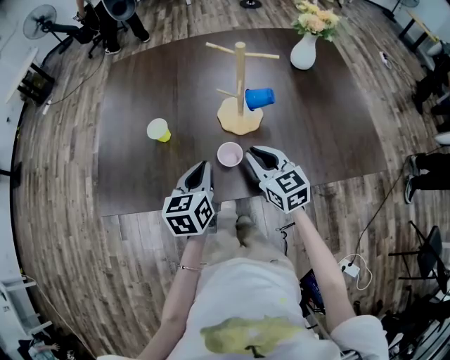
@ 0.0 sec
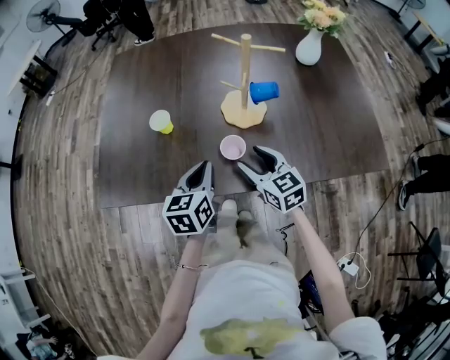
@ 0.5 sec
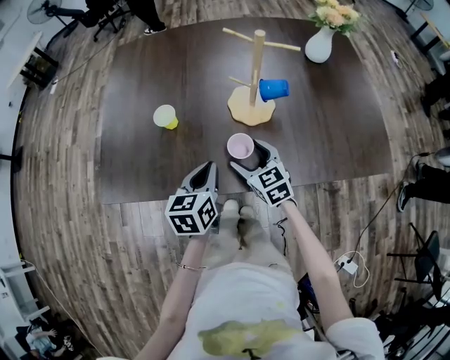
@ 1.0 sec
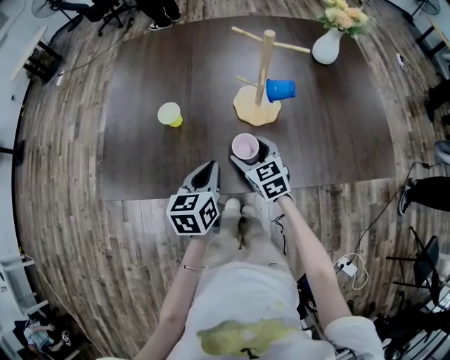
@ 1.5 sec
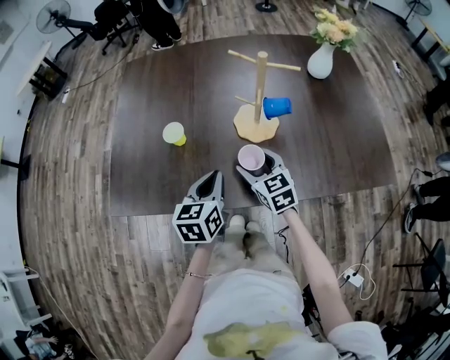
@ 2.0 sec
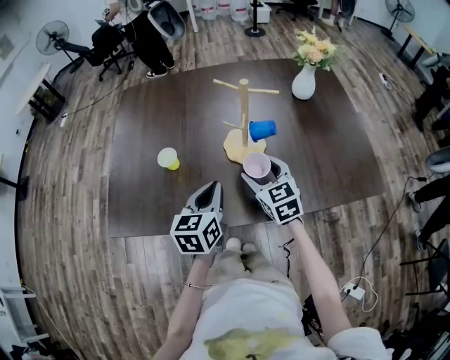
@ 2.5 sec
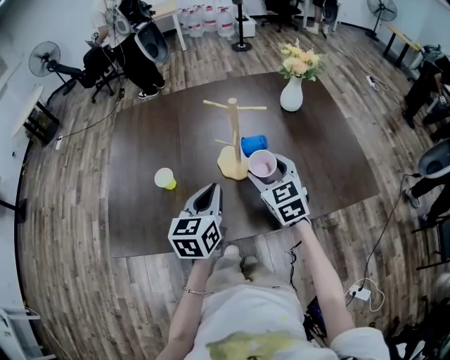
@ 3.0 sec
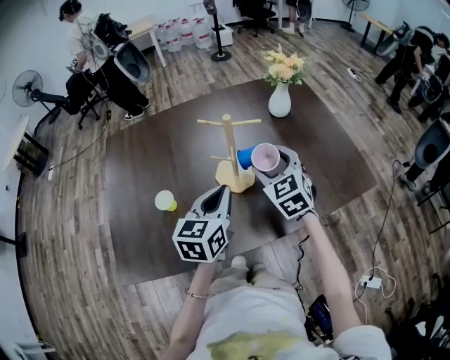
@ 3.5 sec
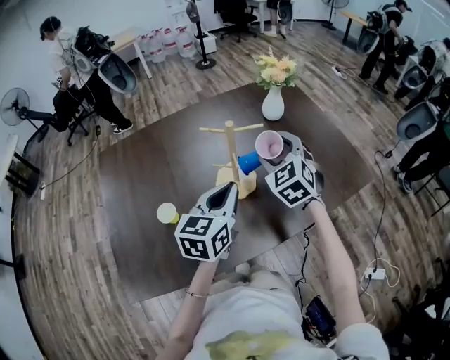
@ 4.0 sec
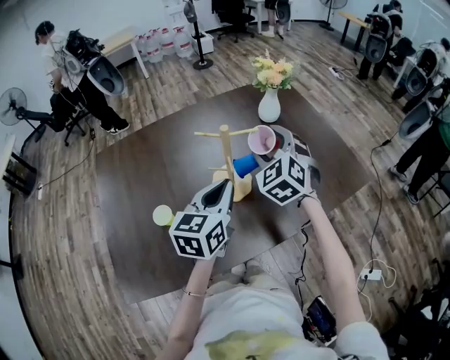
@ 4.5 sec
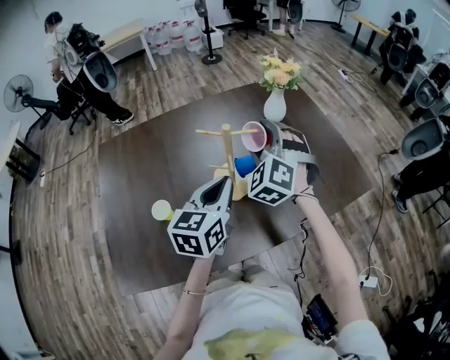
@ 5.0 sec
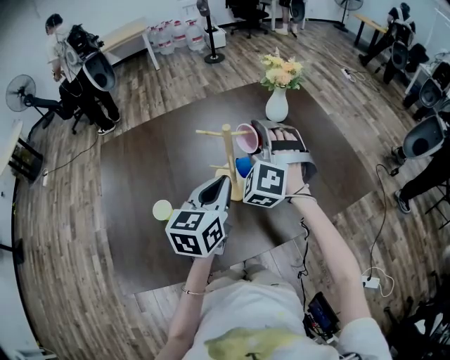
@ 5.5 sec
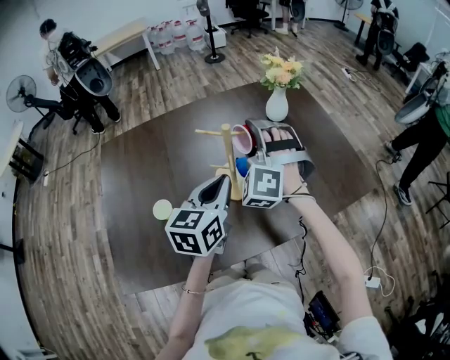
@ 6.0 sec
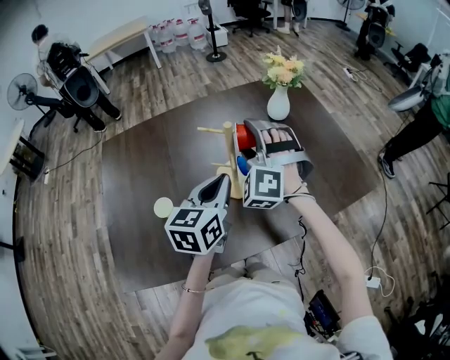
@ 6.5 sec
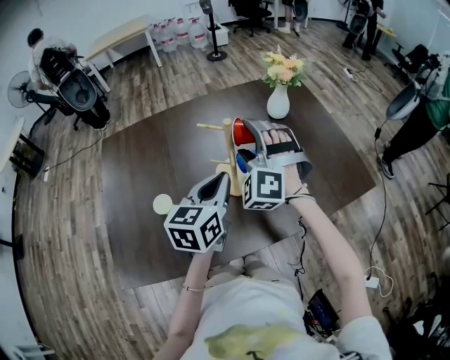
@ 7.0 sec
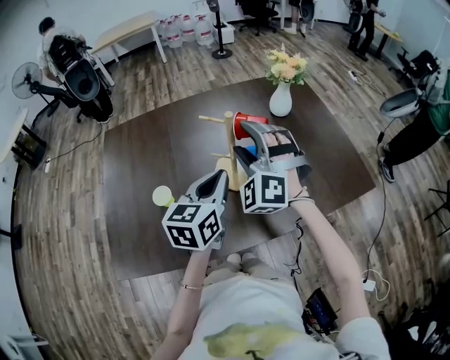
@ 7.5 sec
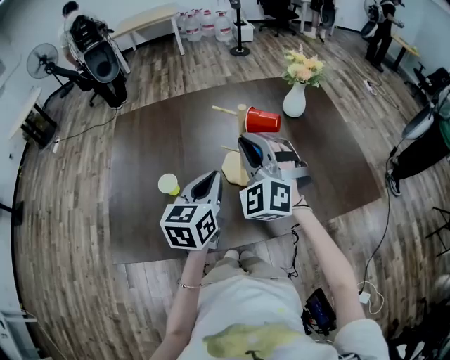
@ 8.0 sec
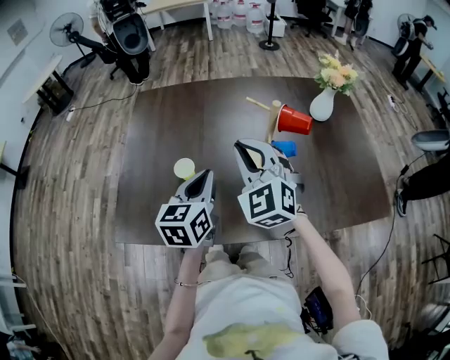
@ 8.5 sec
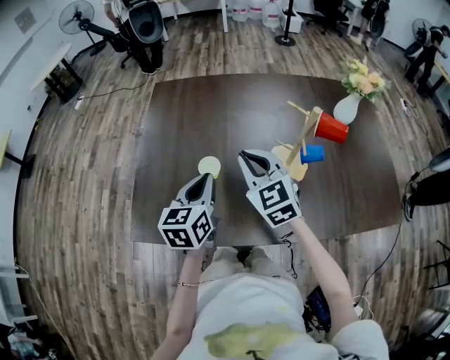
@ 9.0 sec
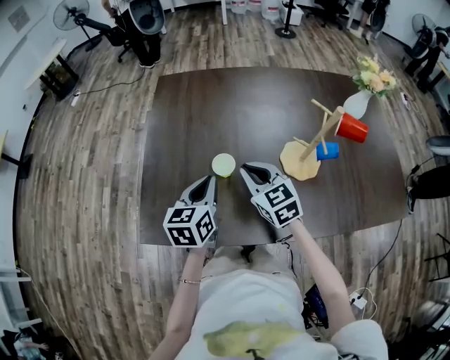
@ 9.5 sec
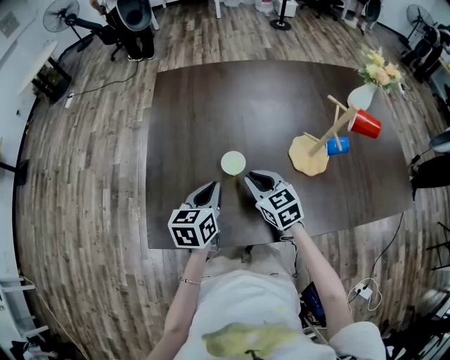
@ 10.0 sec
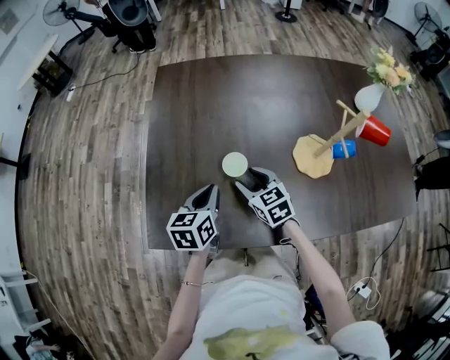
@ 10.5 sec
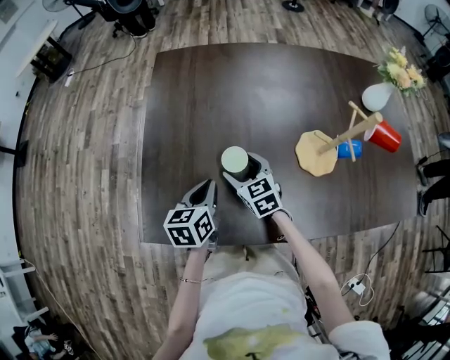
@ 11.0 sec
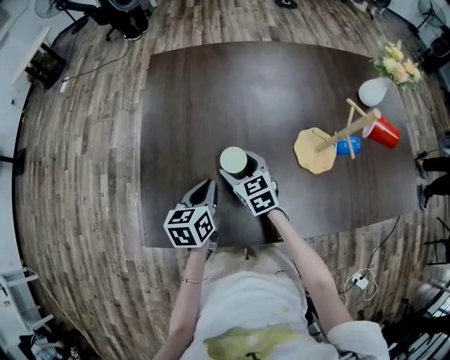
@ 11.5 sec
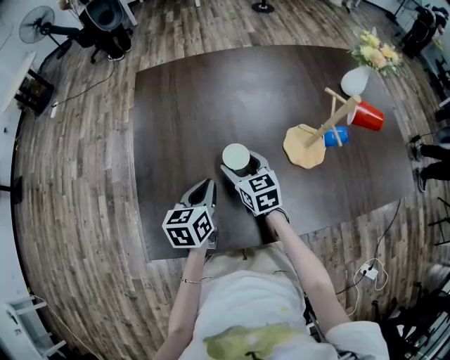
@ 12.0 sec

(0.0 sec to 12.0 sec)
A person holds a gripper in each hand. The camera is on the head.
0.0 sec - 2.0 sec: The right gripper changes place by some 5 cm, and opens up.
2.0 sec - 4.0 sec: Both grippers travel together upward, approximately 15 cm. The left gripper changes its angle by about 30 degrees. Meanwhile the right gripper rotates approximately 40 degrees.
4.0 sec - 6.0 sec: The right gripper heads to the left, covering approximately 5 cm, and rolls counterclockwise, seen from behind, by about 40 degrees.
6.0 sec - 8.0 sec: The right gripper is displaced backward by some 10 cm, turns by roughly 30 degrees, and closes. Meanwhile the left gripper moves some 5 cm.
8.0 sec - 10.0 sec: The left gripper heads to the left and downward, covering some 25 cm, while the right gripper travels downward and to the left by roughly 30 cm, and rotates around the line of its fingers by some 50 degrees, clockwise from behind.
10.0 sec - 12.0 sec: The right gripper heads forward, covering about 5 cm, and opens up.

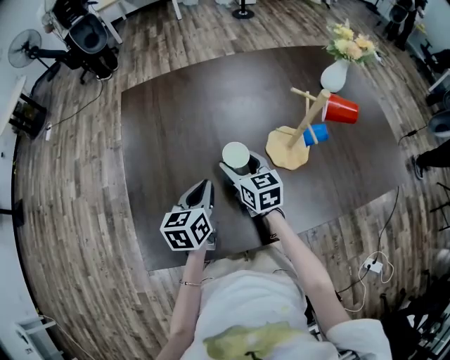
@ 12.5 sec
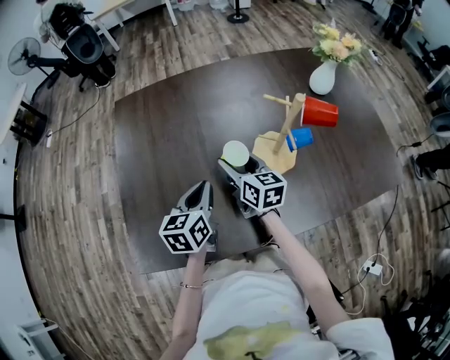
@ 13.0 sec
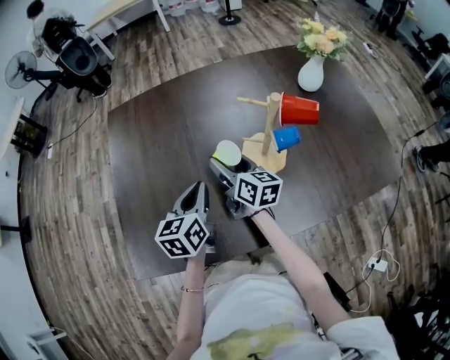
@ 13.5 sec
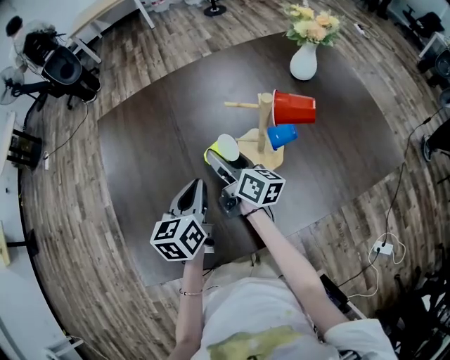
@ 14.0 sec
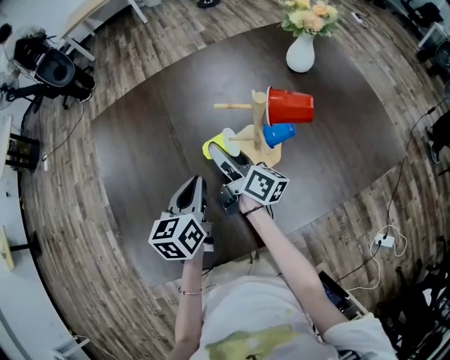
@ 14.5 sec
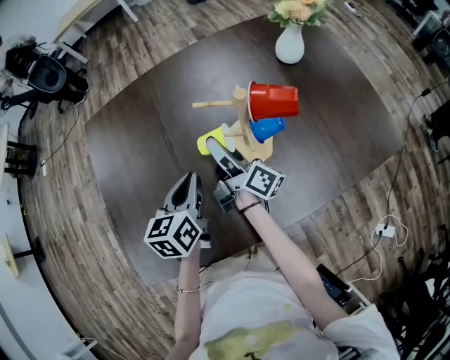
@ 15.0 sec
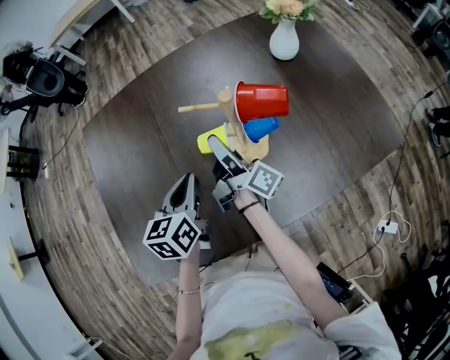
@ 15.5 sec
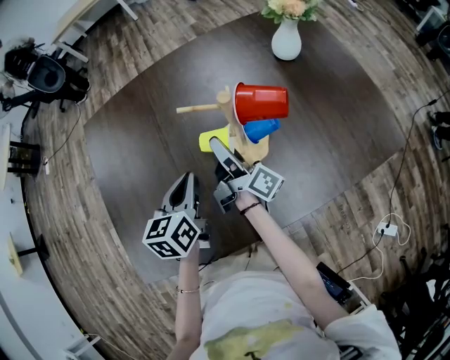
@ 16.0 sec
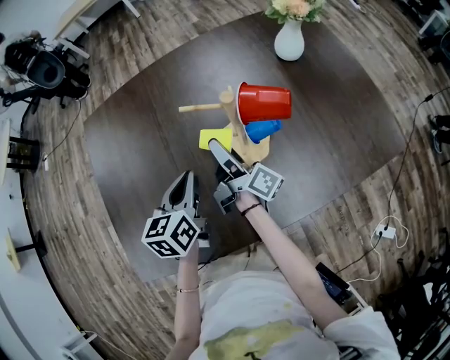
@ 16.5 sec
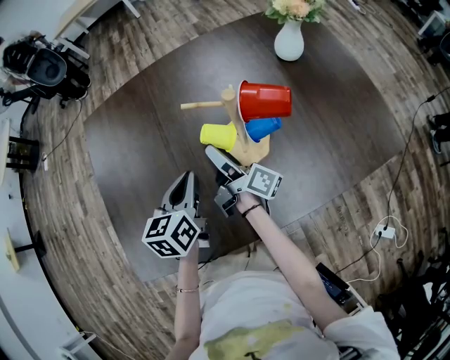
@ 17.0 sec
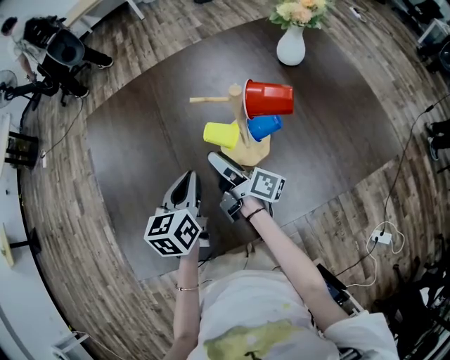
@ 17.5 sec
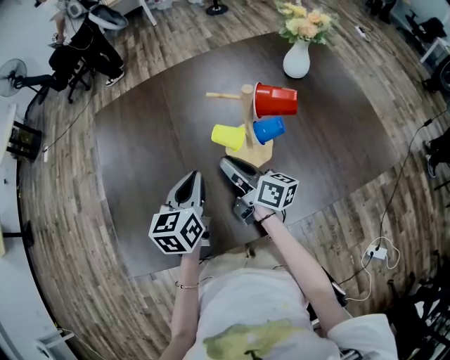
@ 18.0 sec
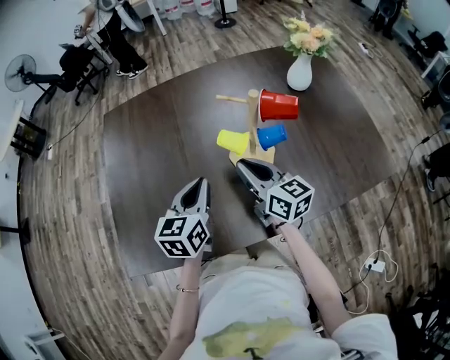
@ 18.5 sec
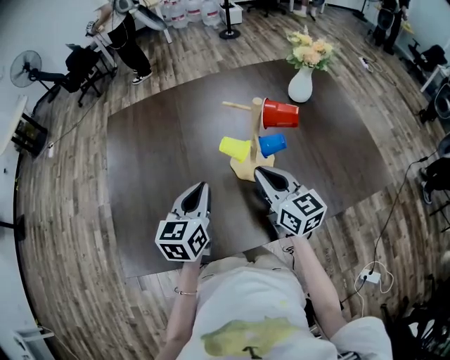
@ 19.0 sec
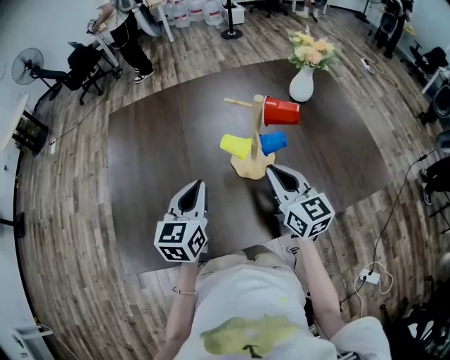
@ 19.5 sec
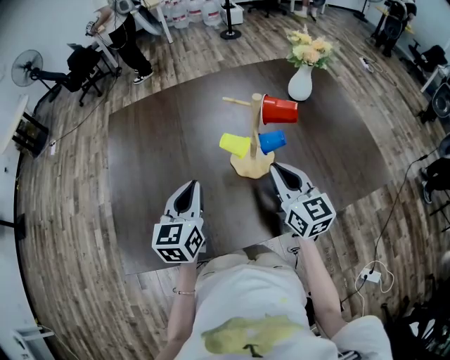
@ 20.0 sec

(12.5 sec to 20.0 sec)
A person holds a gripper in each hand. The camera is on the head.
12.5 sec - 14.5 sec: The two grippers go approximately 10 cm to the right. The right gripper rotates around the line of its fingers by about 50 degrees, clockwise from behind.
14.5 sec - 16.5 sec: The grippers stay close to where they were, moving slightly.
16.5 sec - 18.0 sec: The right gripper travels backward by some 5 cm, changes its angle by about 30 degrees, and closes its fingers.
18.0 sec - 20.0 sec: The right gripper heads to the right, upward and backward, covering roughly 15 cm, and rotates around the line of its fingers by some 50 degrees, counterclockwise from behind; the left gripper shifts by approximately 5 cm.

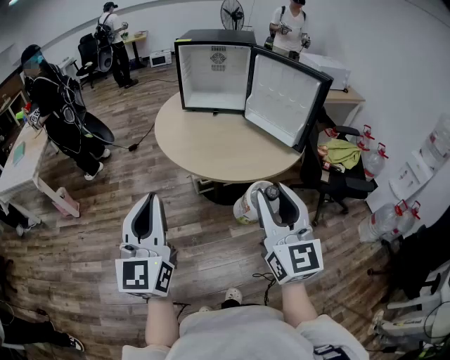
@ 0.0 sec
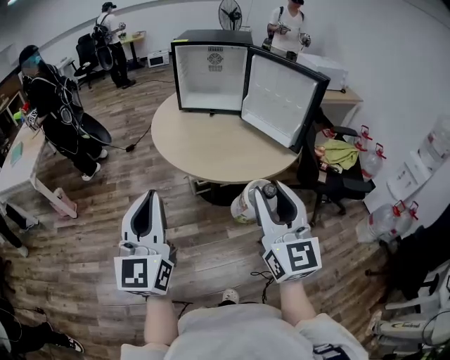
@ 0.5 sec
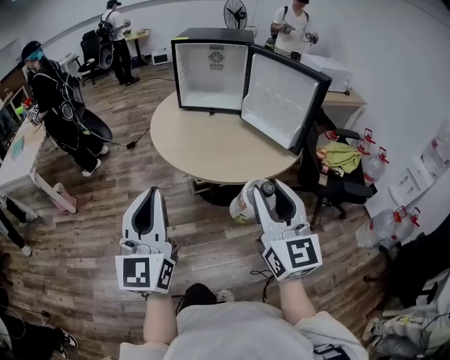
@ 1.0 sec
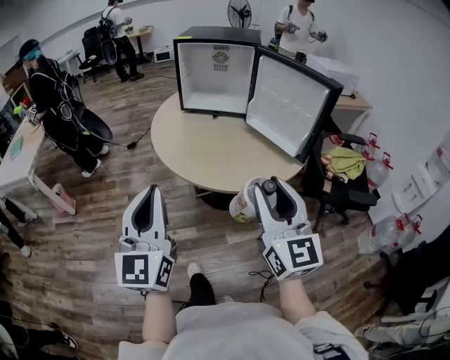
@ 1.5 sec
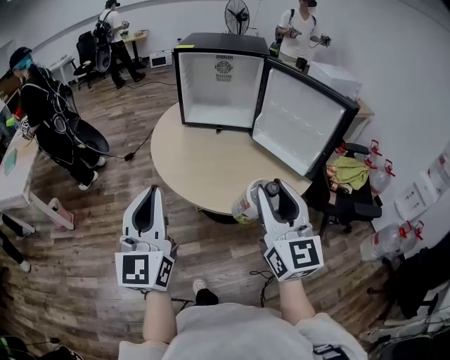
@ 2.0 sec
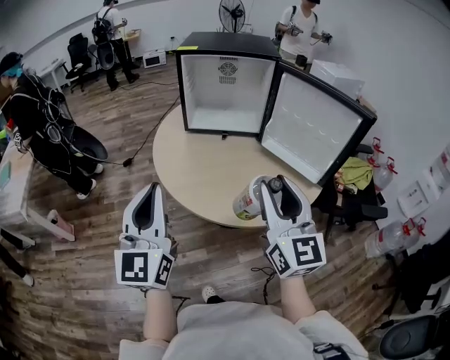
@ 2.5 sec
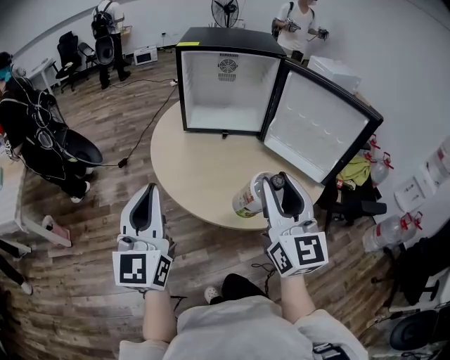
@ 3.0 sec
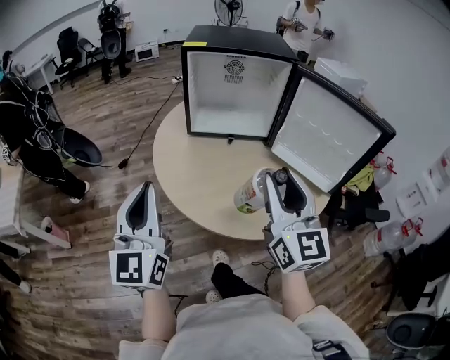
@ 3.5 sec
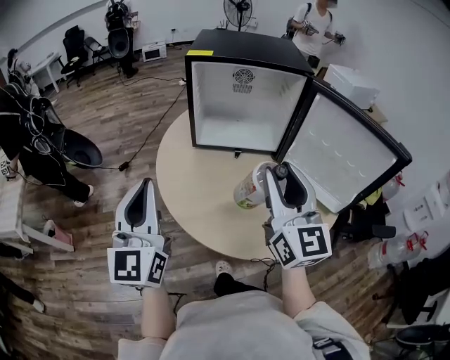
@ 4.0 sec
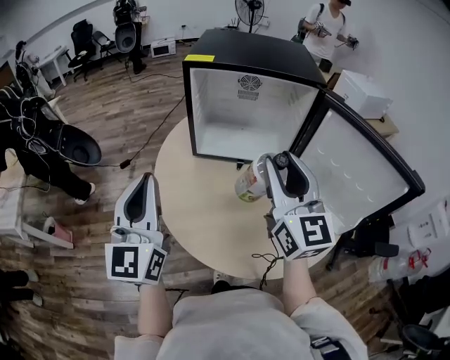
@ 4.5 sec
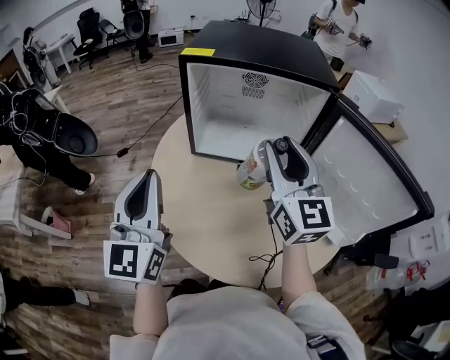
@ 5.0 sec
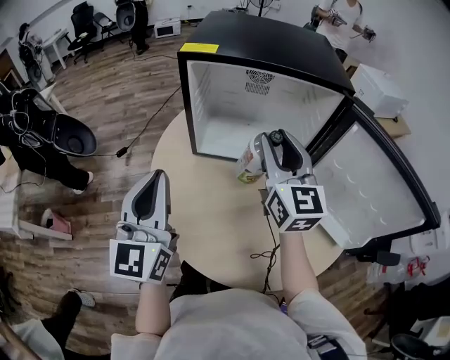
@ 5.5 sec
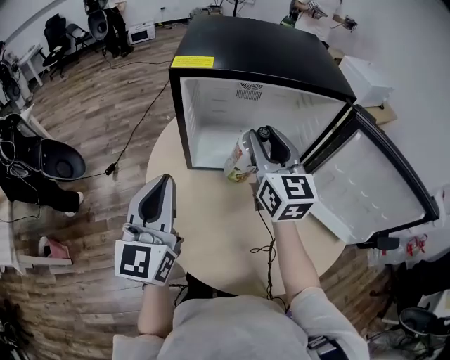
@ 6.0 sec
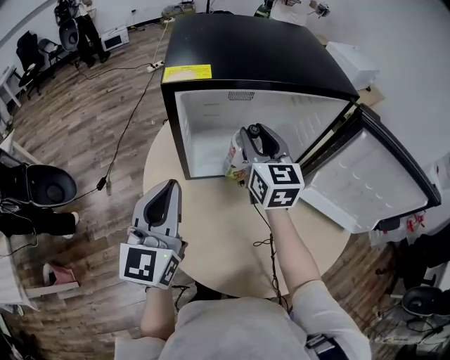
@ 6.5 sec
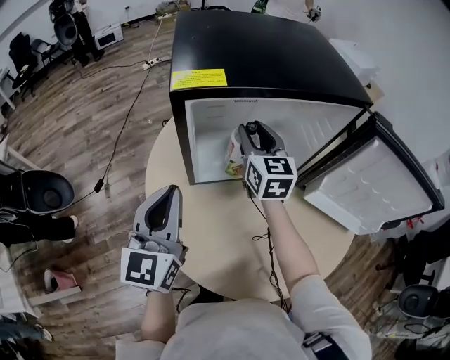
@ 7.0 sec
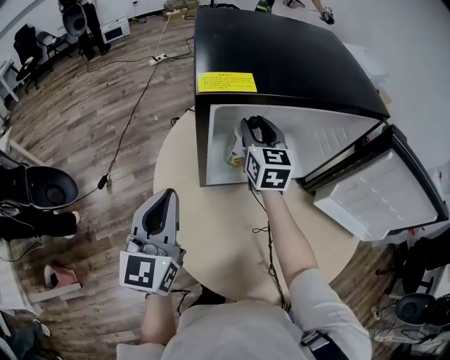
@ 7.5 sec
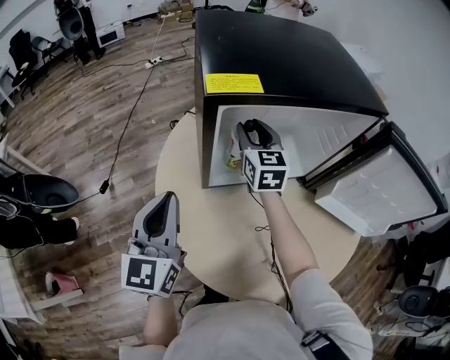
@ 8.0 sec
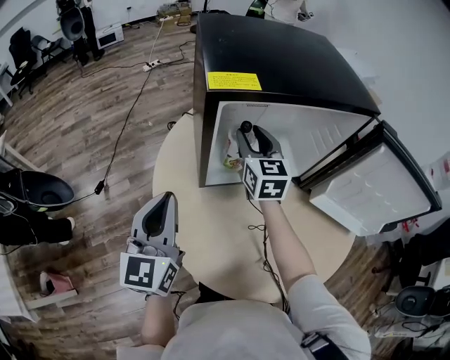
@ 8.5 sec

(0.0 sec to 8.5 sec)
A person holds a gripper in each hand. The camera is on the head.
0.0 sec - 2.0 sec: The grippers both shift forward by some 20 cm.
2.0 sec - 4.0 sec: The right gripper shifts roughly 25 cm forward. Meanwhile the left gripper goes some 30 cm forward and to the left.
4.0 sec - 6.5 sec: The two grippers go about 35 cm forward. The left gripper swivels some 20 degrees.
6.5 sec - 8.5 sec: The right gripper shifts roughly 10 cm to the left, forward and downward. Meanwhile the left gripper is displaced to the left by some 10 cm.
